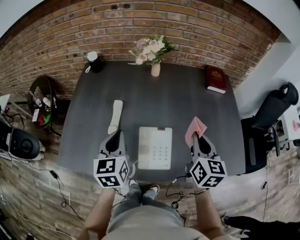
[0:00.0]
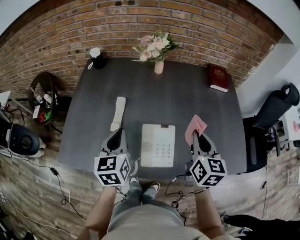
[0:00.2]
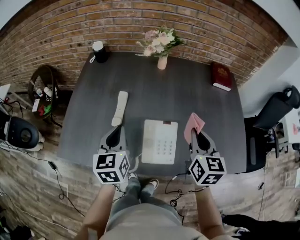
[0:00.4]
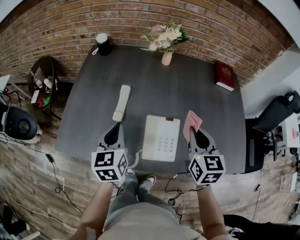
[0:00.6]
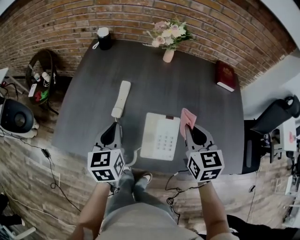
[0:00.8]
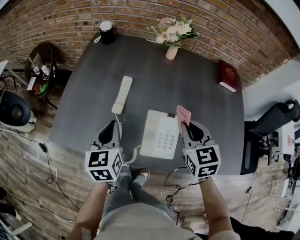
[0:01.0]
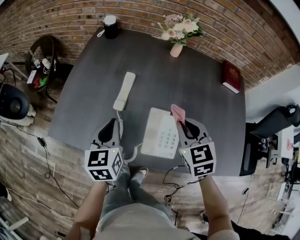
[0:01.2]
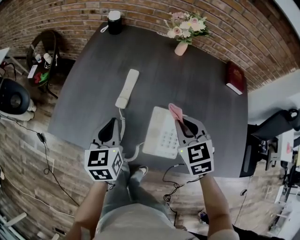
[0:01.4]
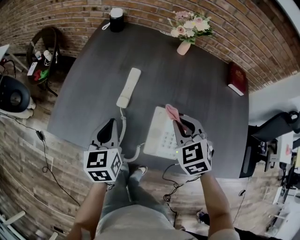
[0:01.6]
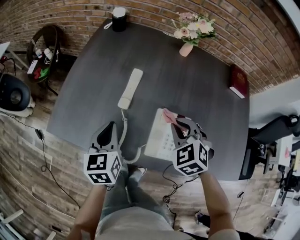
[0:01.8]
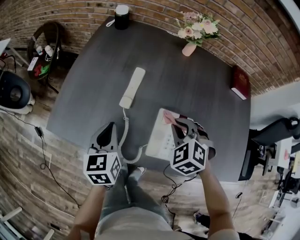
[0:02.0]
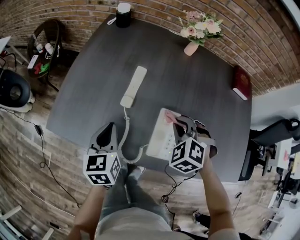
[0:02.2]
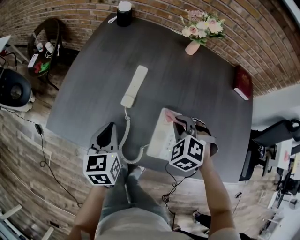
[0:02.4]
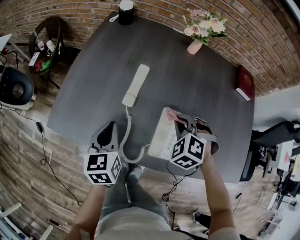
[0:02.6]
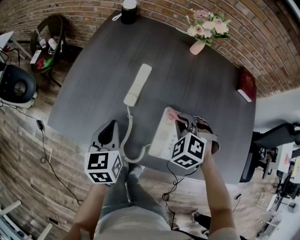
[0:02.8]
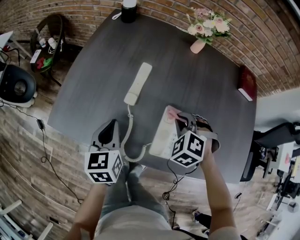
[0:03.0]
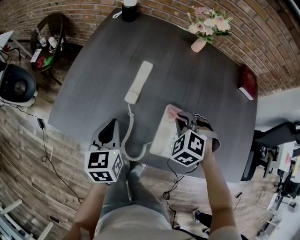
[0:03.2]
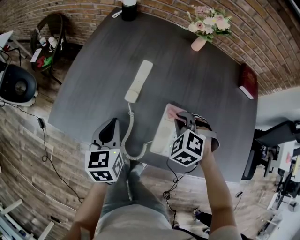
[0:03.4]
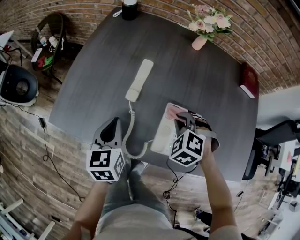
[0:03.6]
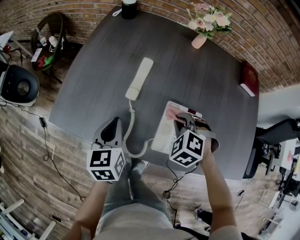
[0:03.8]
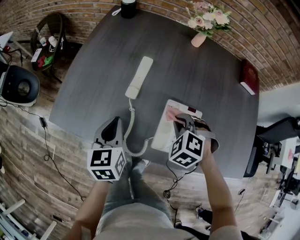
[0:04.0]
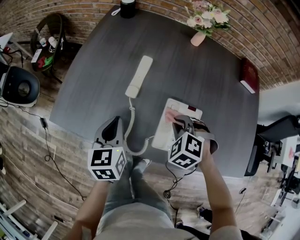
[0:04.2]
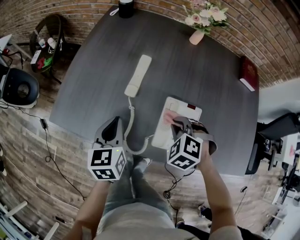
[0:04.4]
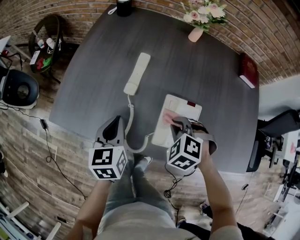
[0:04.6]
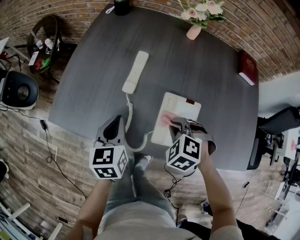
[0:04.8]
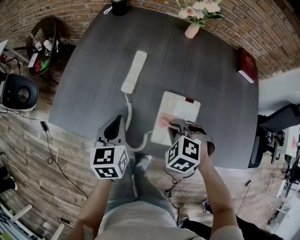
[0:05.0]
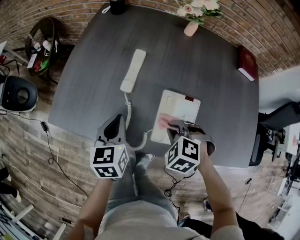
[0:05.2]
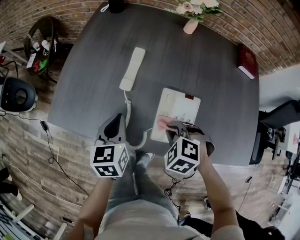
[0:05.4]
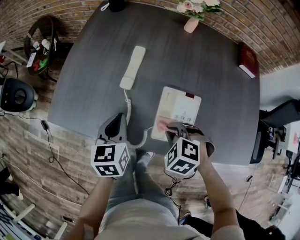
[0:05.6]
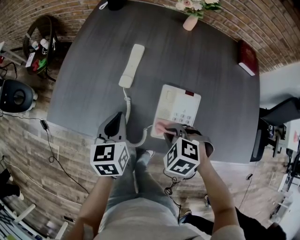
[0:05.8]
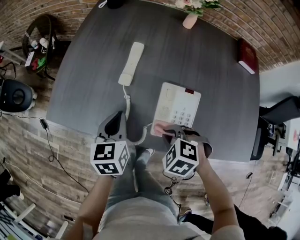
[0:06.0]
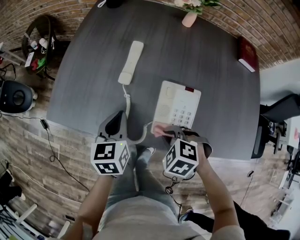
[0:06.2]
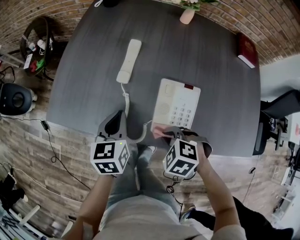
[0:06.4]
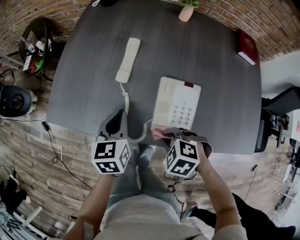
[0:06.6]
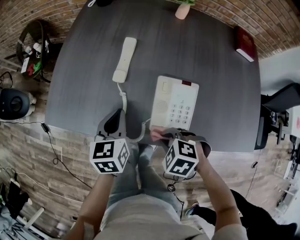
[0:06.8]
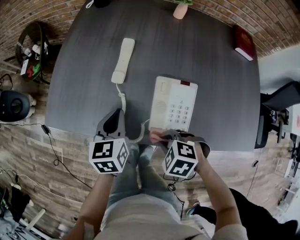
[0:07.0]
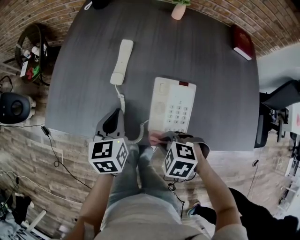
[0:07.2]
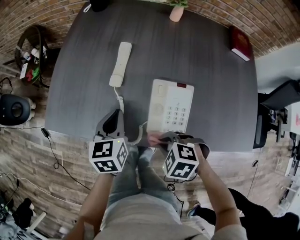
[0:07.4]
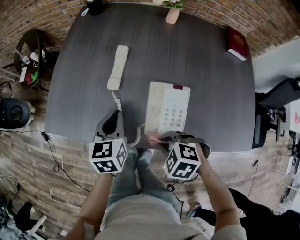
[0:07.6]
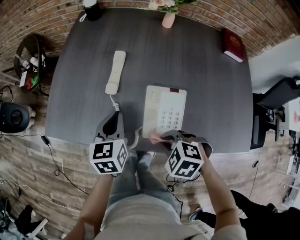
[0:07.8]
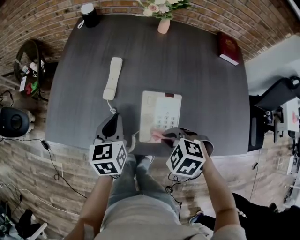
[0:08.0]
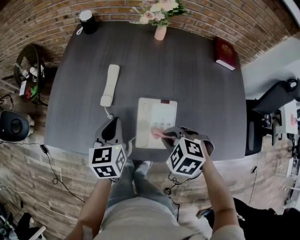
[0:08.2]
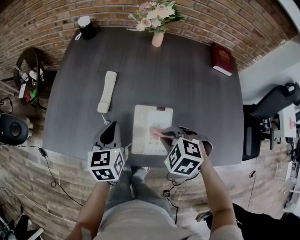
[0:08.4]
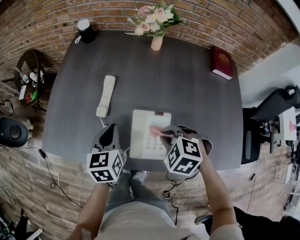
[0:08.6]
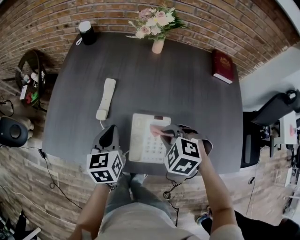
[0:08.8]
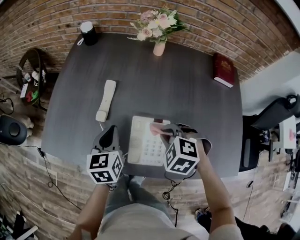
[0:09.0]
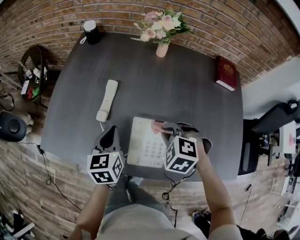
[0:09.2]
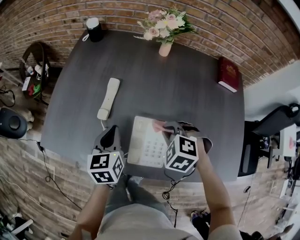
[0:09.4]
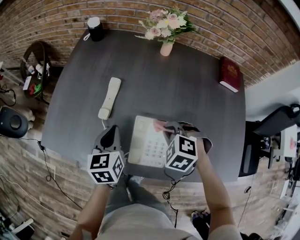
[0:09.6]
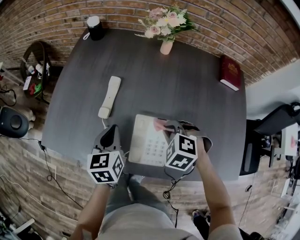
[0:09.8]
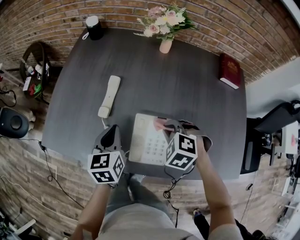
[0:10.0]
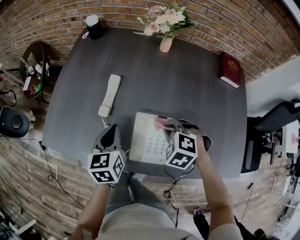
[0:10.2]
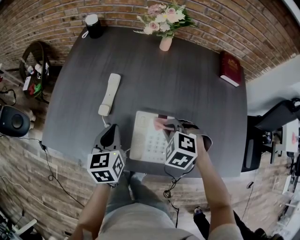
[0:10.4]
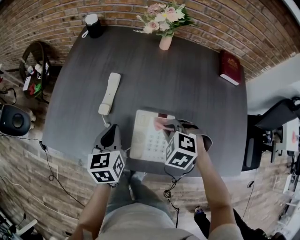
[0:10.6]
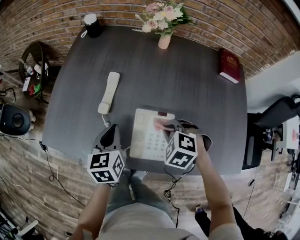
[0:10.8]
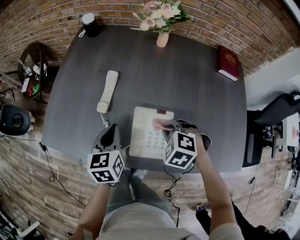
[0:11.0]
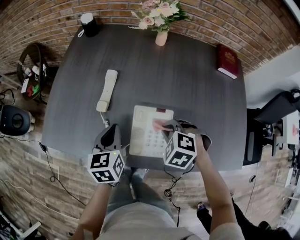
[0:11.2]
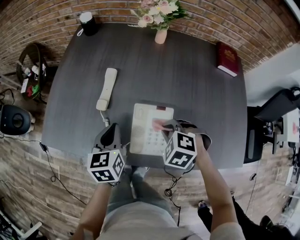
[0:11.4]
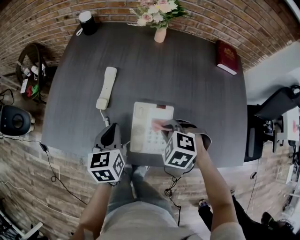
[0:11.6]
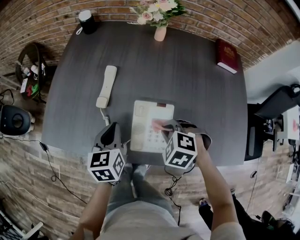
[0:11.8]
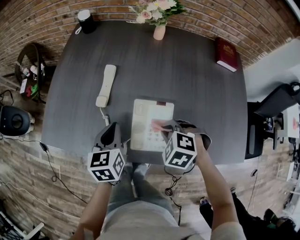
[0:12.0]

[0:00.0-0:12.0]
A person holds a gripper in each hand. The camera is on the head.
0:00.0 to 0:01.6: Both grippers move to the left and downward, about 15 cm. The right gripper rolls counterclockwise, seen from behind, by approximately 50 degrees.
0:01.6 to 0:03.0: The right gripper is displaced downward by roughly 10 cm, and rotates approximately 30 degrees.
0:03.0 to 0:04.4: The right gripper moves backward, some 5 cm.
0:04.4 to 0:06.0: The right gripper shifts about 10 cm backward.
0:06.0 to 0:07.6: The grippers move only a little.
0:07.6 to 0:09.0: The left gripper heads to the right, covering roughly 5 cm, while the right gripper travels to the right, forward and upward by some 20 cm.
0:09.0 to 0:10.4: There are only small adjustments of the grippers.
0:10.4 to 0:12.0: The right gripper moves backward, some 5 cm.

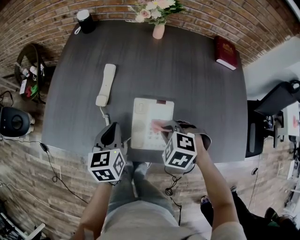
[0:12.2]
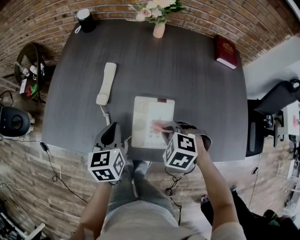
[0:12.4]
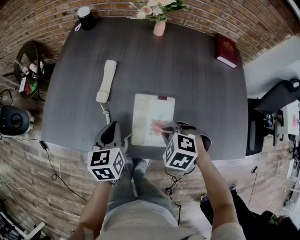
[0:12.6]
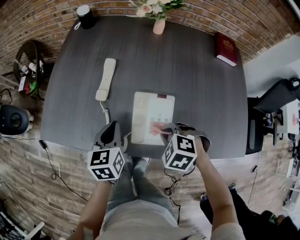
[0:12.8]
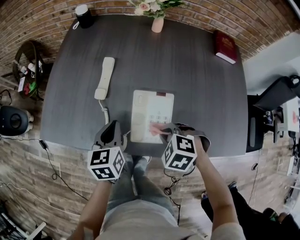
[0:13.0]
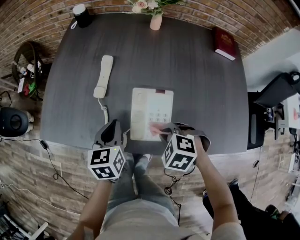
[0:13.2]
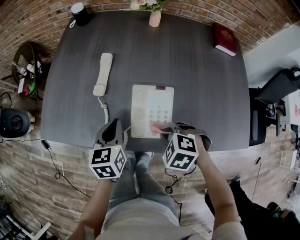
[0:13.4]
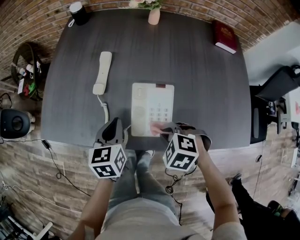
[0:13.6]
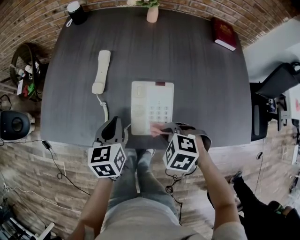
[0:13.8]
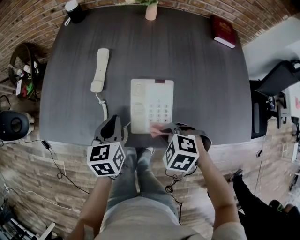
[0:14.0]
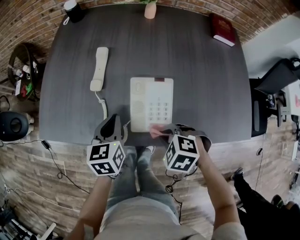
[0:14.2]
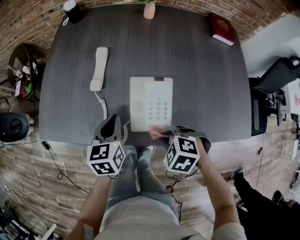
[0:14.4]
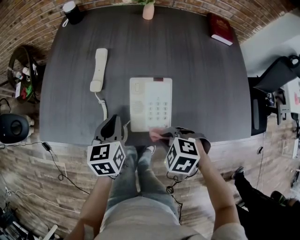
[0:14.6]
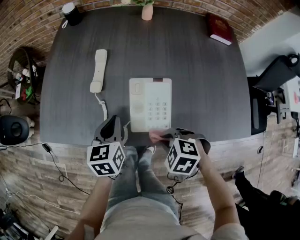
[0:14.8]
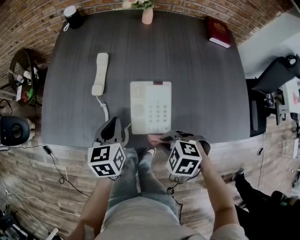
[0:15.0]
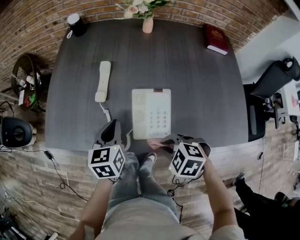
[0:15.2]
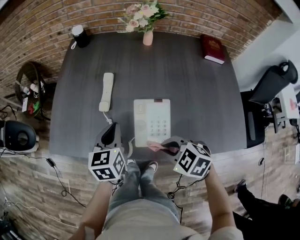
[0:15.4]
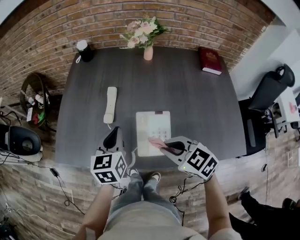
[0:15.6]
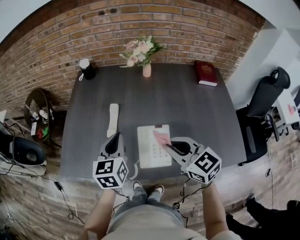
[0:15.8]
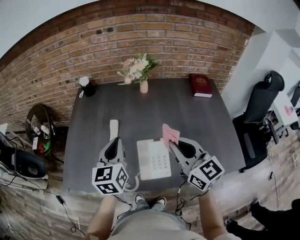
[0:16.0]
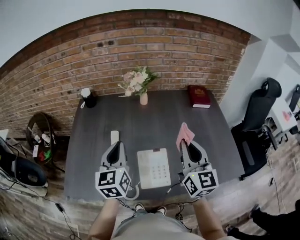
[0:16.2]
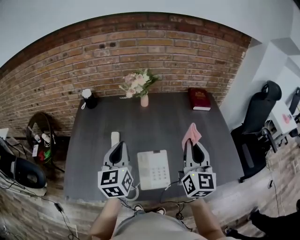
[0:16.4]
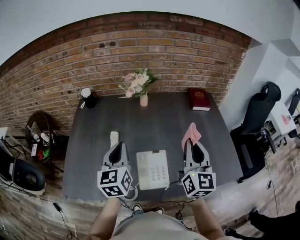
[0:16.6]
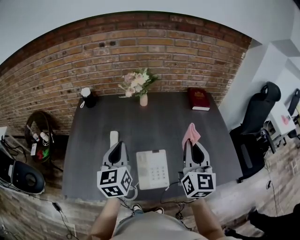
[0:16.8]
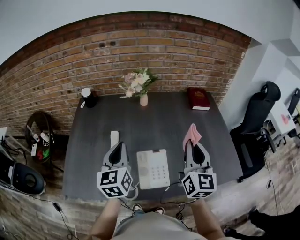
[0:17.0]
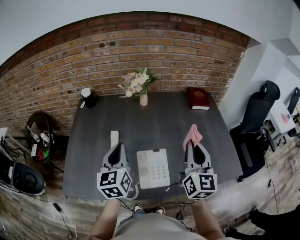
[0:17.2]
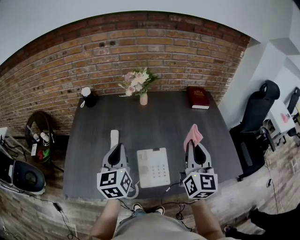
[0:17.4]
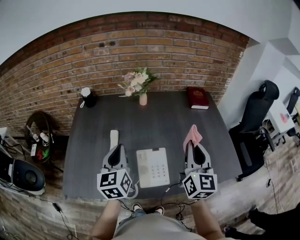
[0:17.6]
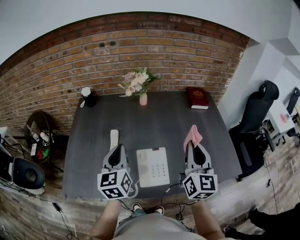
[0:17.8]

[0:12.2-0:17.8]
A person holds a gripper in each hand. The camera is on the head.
0:12.2 to 0:13.6: The right gripper travels backward by about 5 cm.
0:13.6 to 0:15.0: The right gripper changes place by about 5 cm.
0:15.0 to 0:16.4: Both grippers move upward, approximately 25 cm. The right gripper angles its fingers upward, by about 80 degrees. The left gripper turns by approximately 30 degrees.
0:16.4 to 0:17.8: The grippers move only a little.

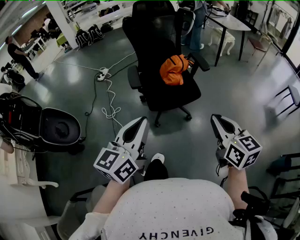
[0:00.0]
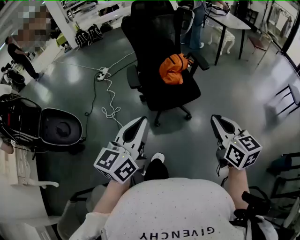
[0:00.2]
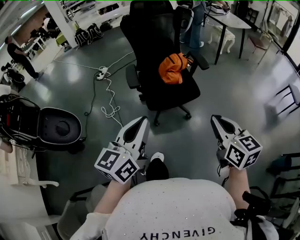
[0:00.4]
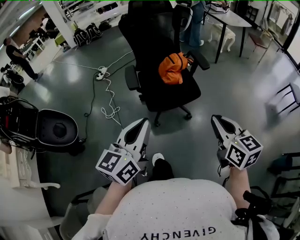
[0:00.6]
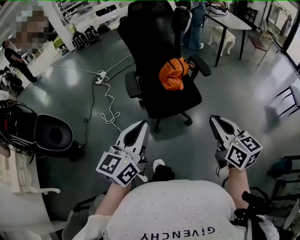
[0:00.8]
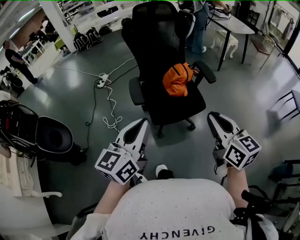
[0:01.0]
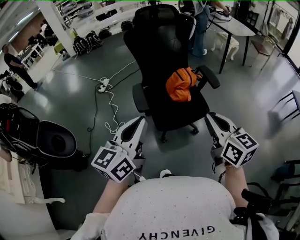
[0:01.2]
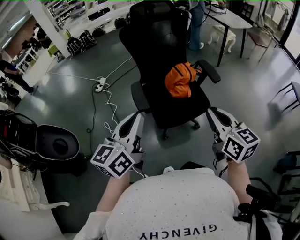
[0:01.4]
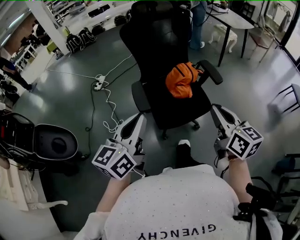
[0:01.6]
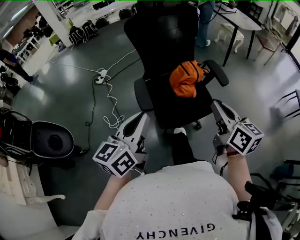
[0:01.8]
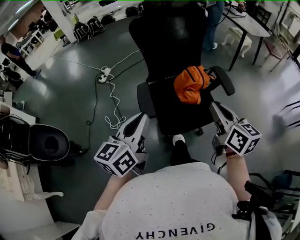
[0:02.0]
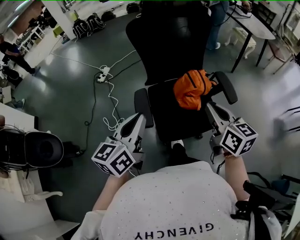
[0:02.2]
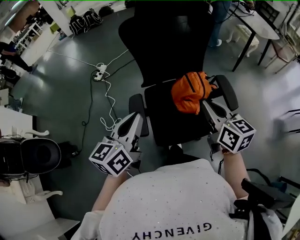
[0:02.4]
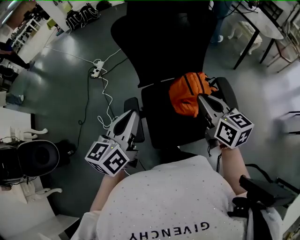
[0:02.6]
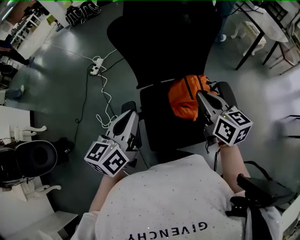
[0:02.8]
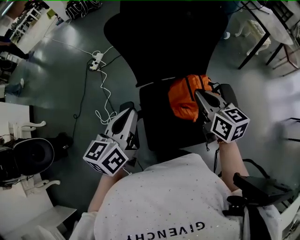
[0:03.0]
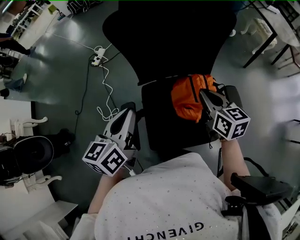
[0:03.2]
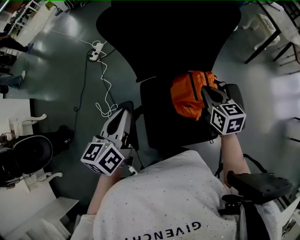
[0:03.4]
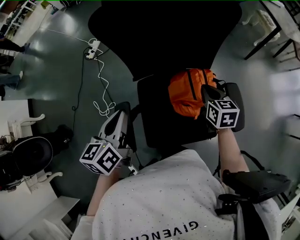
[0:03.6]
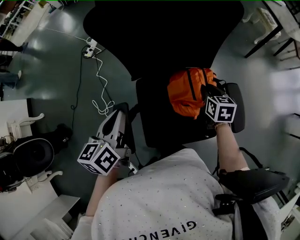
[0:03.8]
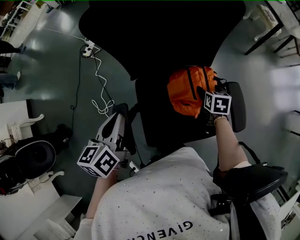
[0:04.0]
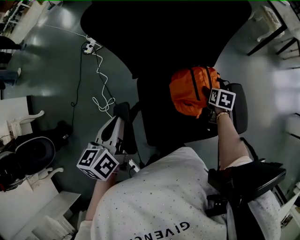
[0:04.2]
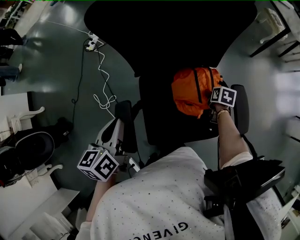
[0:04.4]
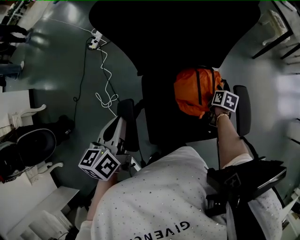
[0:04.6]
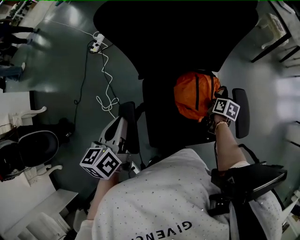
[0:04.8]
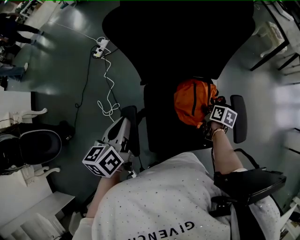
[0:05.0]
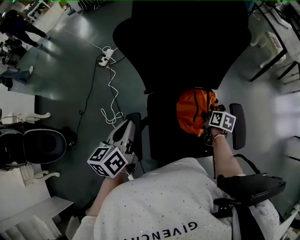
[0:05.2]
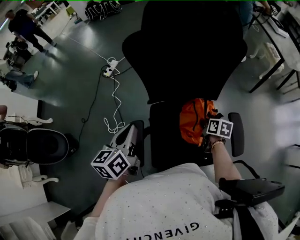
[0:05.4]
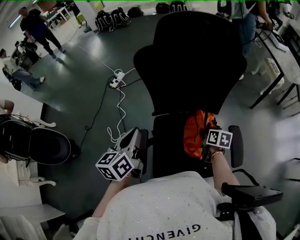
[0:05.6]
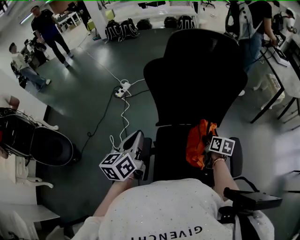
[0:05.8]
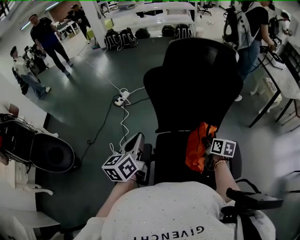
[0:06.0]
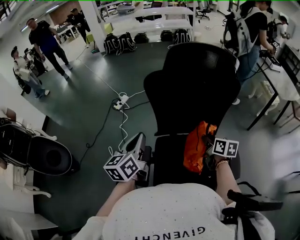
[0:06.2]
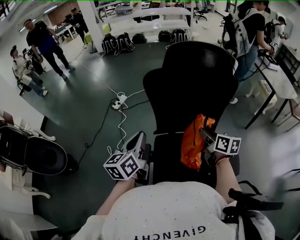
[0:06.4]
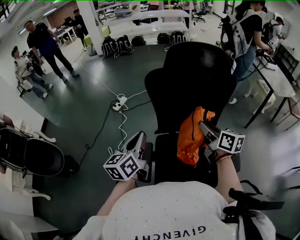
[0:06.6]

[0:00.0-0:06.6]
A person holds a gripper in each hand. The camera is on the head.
0:00.0 to 0:01.6: The right gripper is displaced forward by approximately 20 cm; the left gripper is displaced forward and to the left by some 25 cm.
0:01.6 to 0:03.2: The grippers both shift forward by some 40 cm. The right gripper swivels approximately 20 degrees. Meanwhile the left gripper turns by about 30 degrees.
0:03.2 to 0:05.0: The right gripper moves downward, some 25 cm, turns by roughly 40 degrees, and opens, then closes once more. Meanwhile the left gripper travels downward by roughly 5 cm.
0:05.0 to 0:06.6: The right gripper goes about 35 cm upward, and points its fingers roughly 40 degrees further upward; the left gripper heads upward, covering approximately 10 cm, and swivels some 20 degrees.
